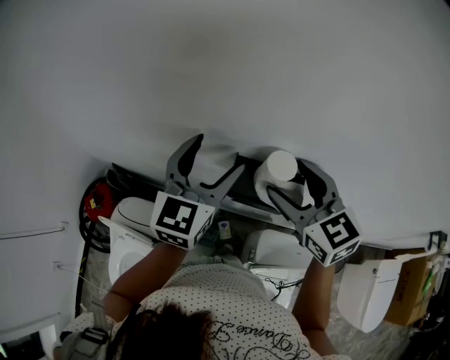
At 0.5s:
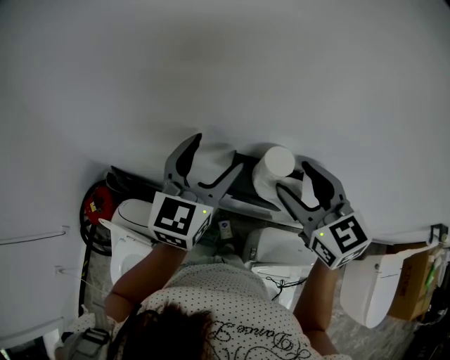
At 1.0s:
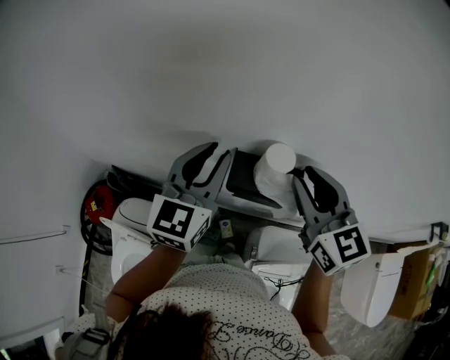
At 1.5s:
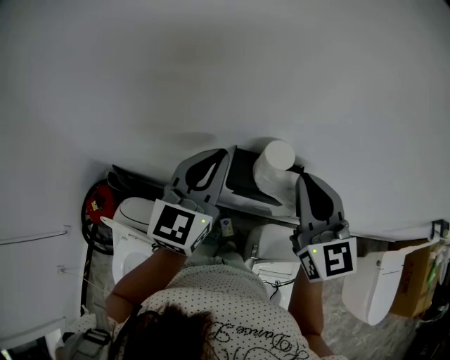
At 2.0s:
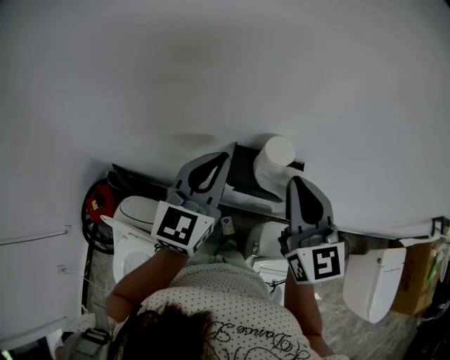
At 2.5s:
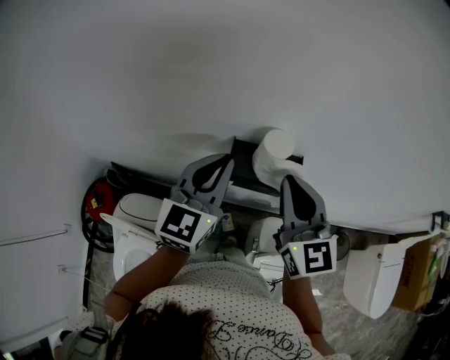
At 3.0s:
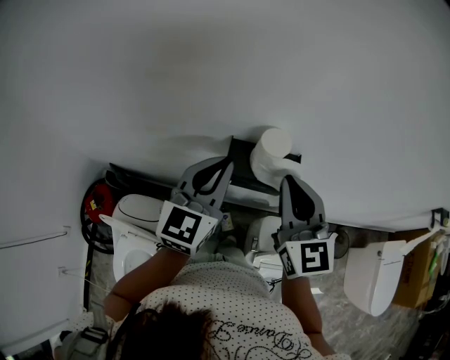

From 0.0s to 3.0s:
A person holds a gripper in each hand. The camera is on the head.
From 0.0s to 1.5s: The left gripper closes up. The right gripper ends up about 5 cm from where it was, changes its angle by approximately 20 degrees, and closes up.
From 1.5s to 3.0s: The left gripper changes place by about 5 cm.

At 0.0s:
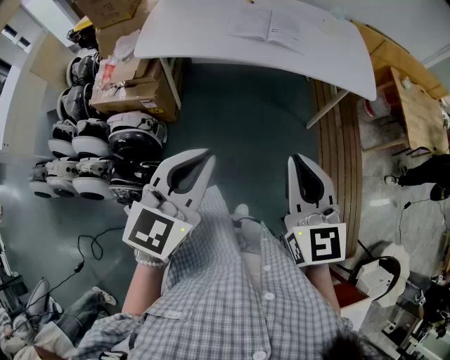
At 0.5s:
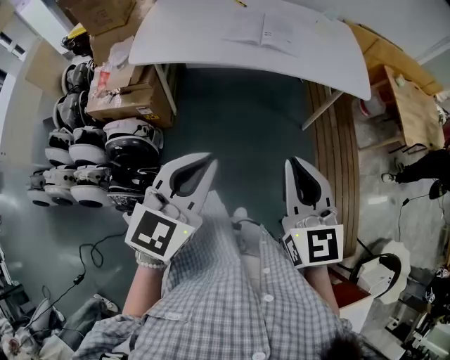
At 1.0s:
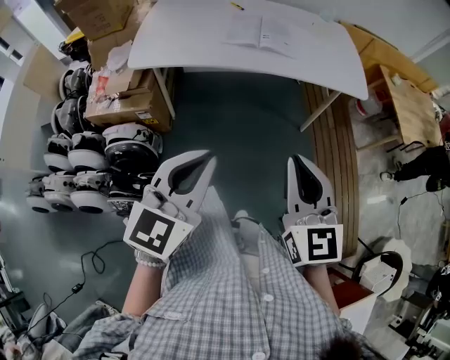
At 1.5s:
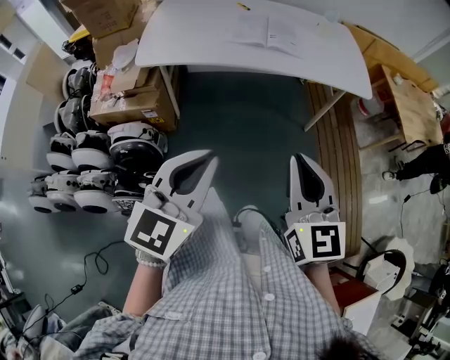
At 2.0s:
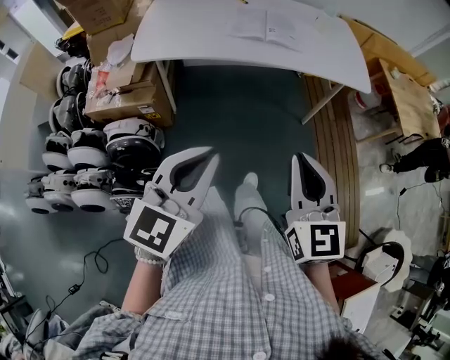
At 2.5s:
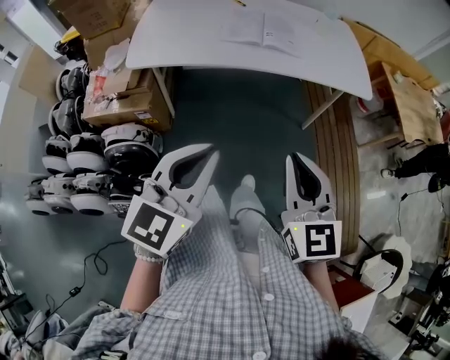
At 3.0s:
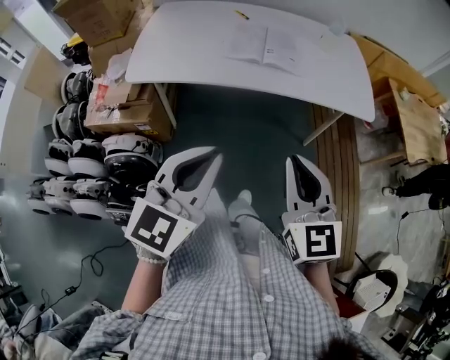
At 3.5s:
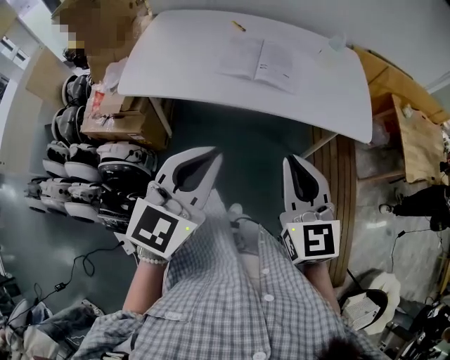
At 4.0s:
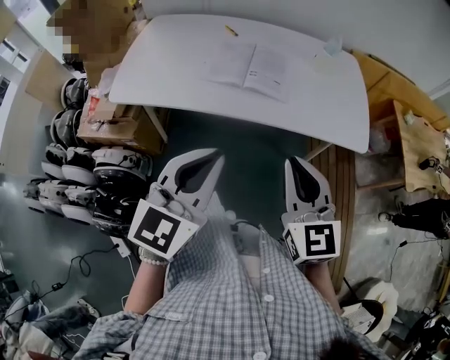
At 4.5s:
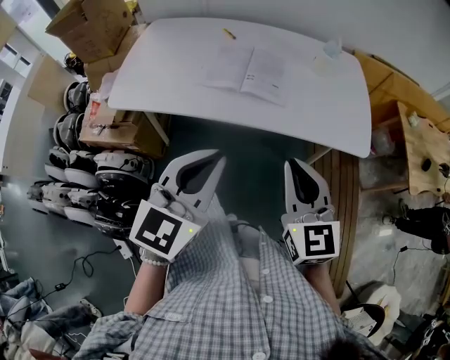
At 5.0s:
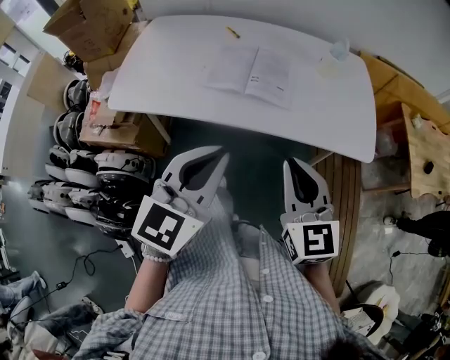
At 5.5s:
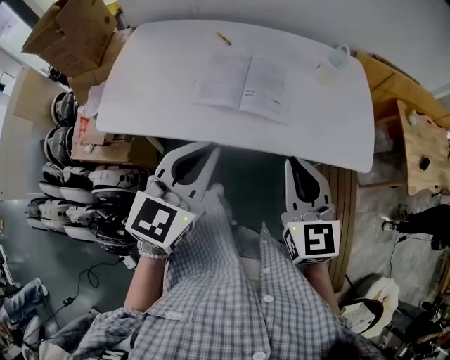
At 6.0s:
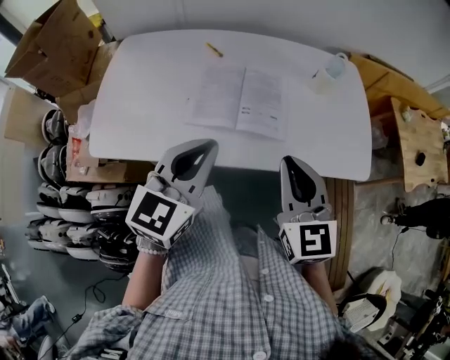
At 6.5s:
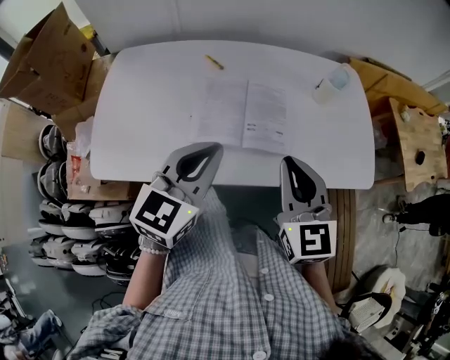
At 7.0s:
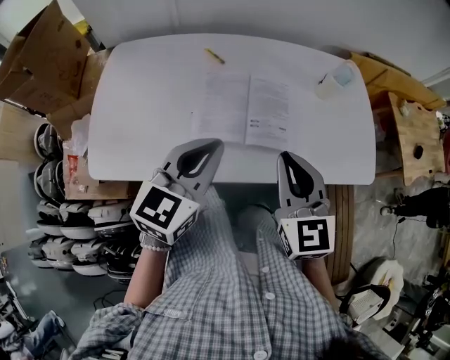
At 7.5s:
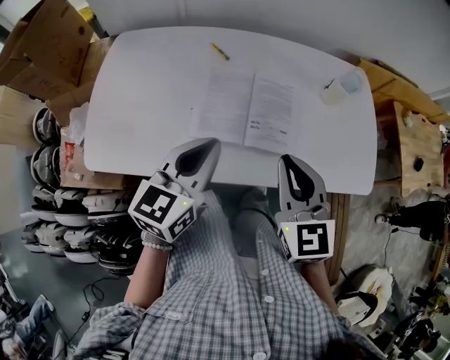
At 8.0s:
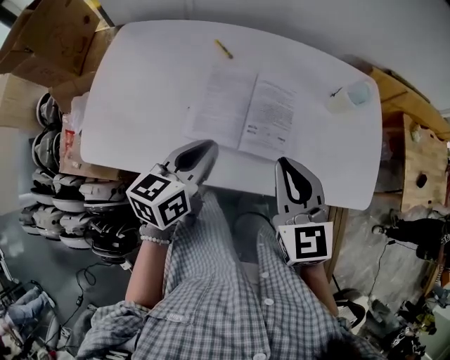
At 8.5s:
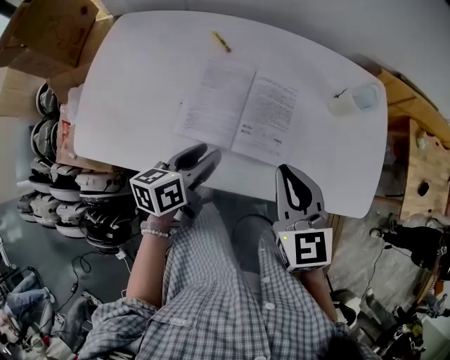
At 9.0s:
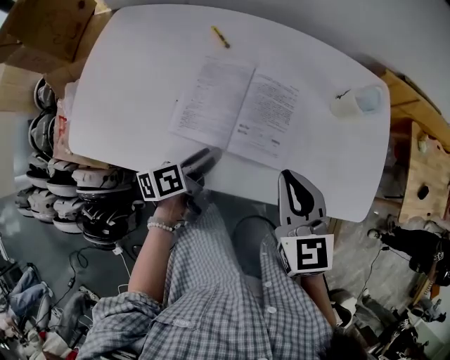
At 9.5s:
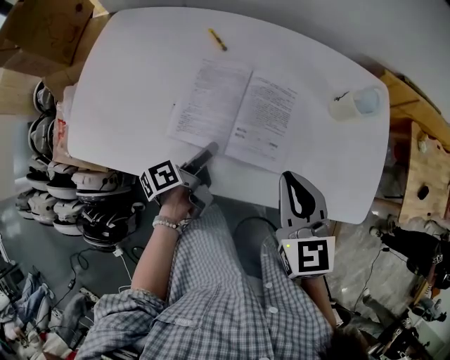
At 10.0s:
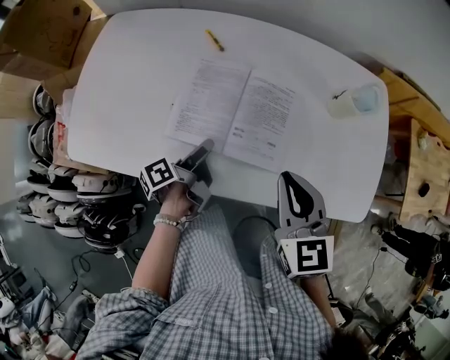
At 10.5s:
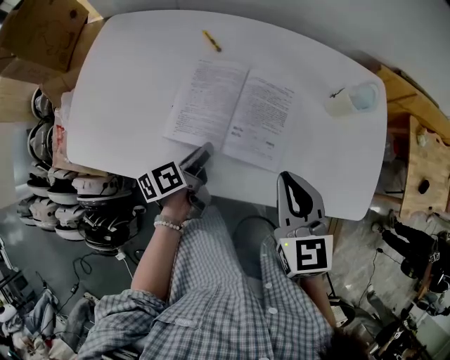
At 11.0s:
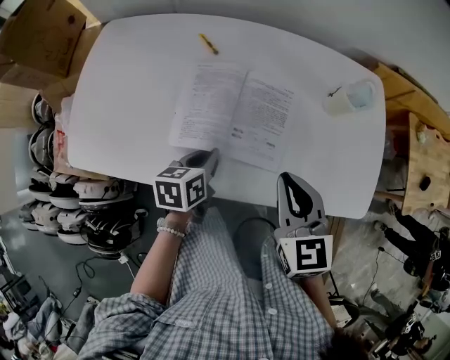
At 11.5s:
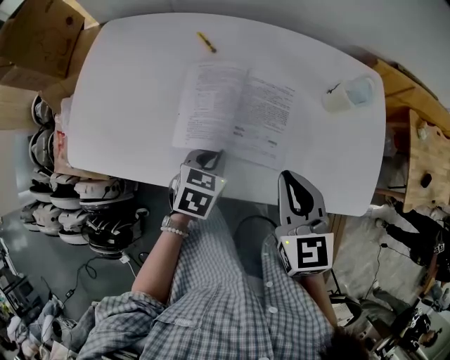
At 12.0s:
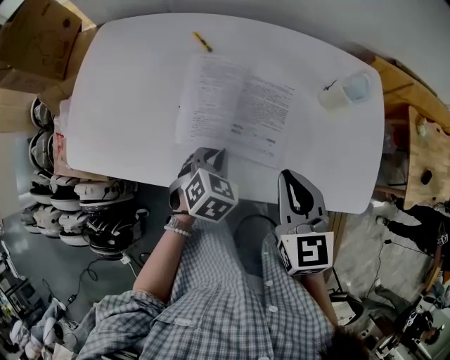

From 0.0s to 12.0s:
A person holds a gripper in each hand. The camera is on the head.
From 0.0s to 2.0s: The grippers make only small movements.
From 2.0s to 4.0s: Both grippers move forward and to the right, roughly 25 cm.
From 4.0s to 6.0s: Both grippers travel together forward, roughly 20 cm.
From 6.0s to 8.0s: The right gripper shifts approximately 10 cm forward. Meanwhile the left gripper moves downward and forward, approximately 15 cm, and swivels approximately 30 degrees.
From 8.0s to 10.0s: The left gripper moves downward, some 15 cm, twists about 60 degrees counterclockwise, seen from behind, and opens; the right gripper goes some 5 cm to the right.
From 10.0s to 12.0s: The left gripper shifts approximately 5 cm to the right, twists about 100 degrees clockwise, seen from behind, and closes.

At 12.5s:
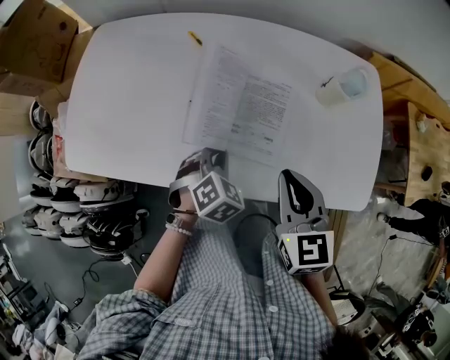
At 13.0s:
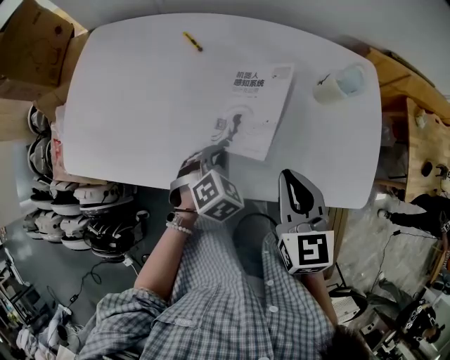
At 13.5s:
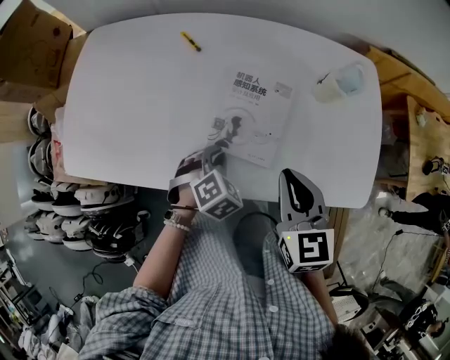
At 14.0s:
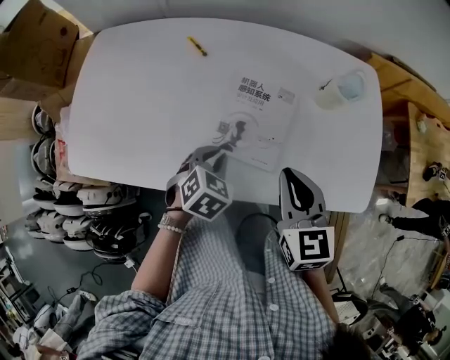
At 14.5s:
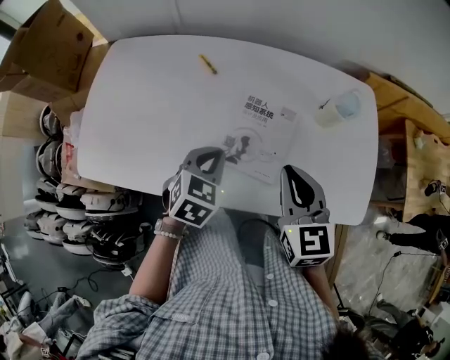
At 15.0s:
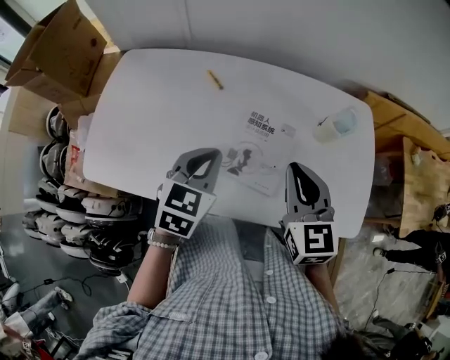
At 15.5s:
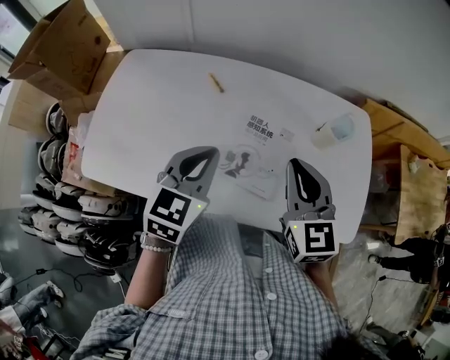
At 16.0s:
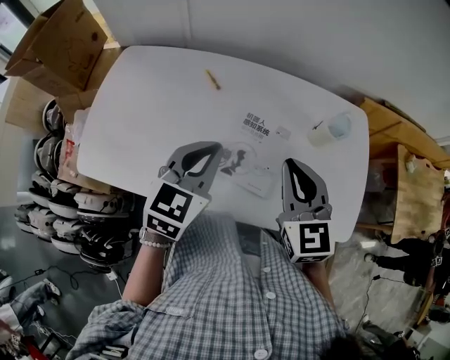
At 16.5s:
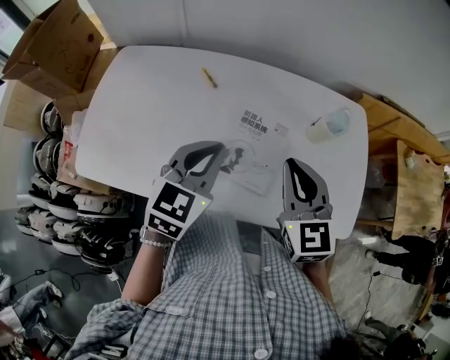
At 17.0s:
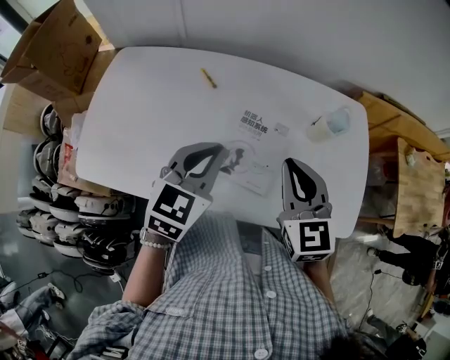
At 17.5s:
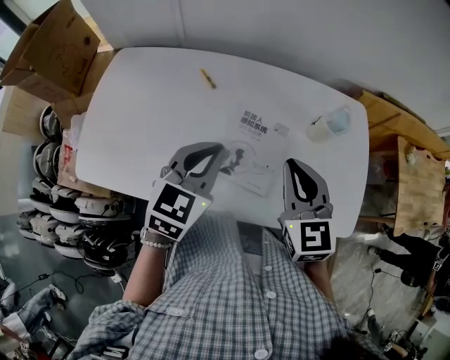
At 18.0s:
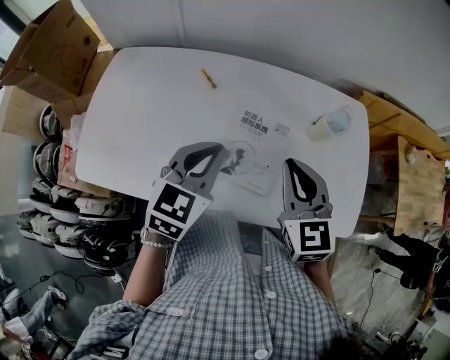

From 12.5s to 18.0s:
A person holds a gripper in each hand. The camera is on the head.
From 12.5s to 14.5s: The left gripper travels upward by roughly 10 cm, and swivels approximately 20 degrees.
From 14.5s to 16.0s: The right gripper goes some 5 cm upward; the left gripper travels upward by about 10 cm, and changes its angle by some 20 degrees.
From 16.0s to 18.0s: Both grippers stay about where they are.

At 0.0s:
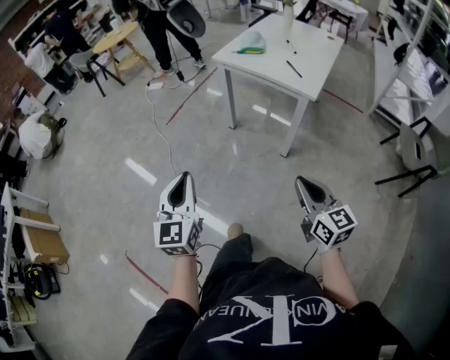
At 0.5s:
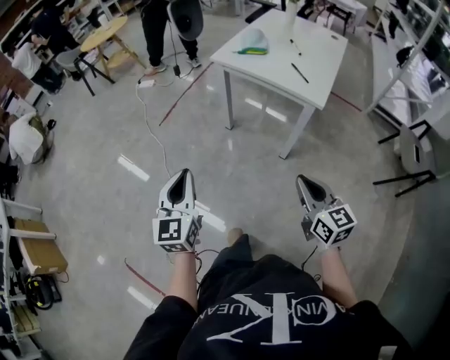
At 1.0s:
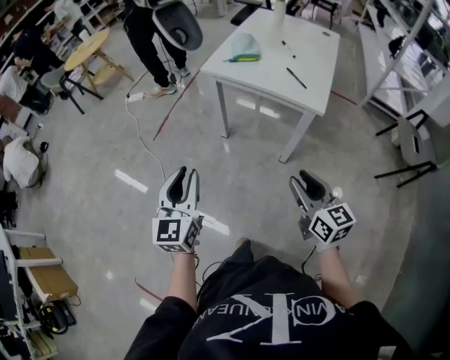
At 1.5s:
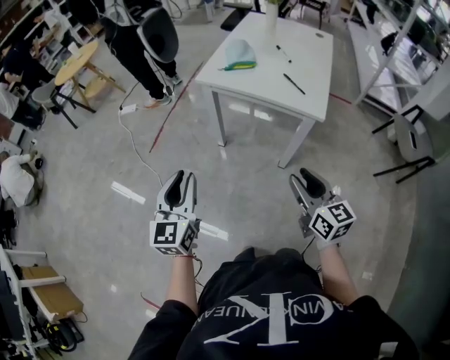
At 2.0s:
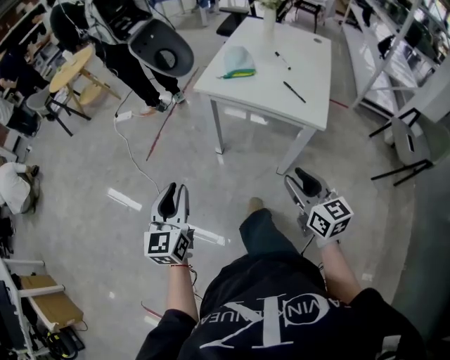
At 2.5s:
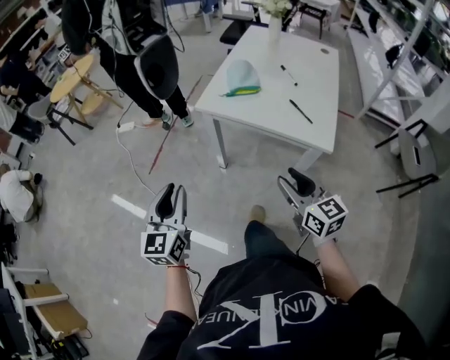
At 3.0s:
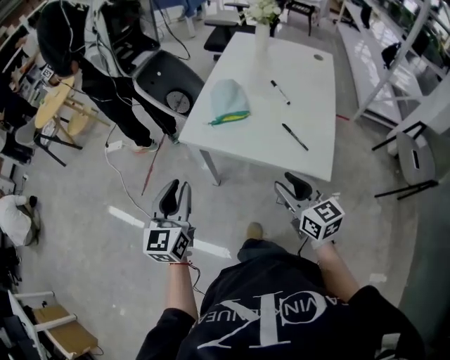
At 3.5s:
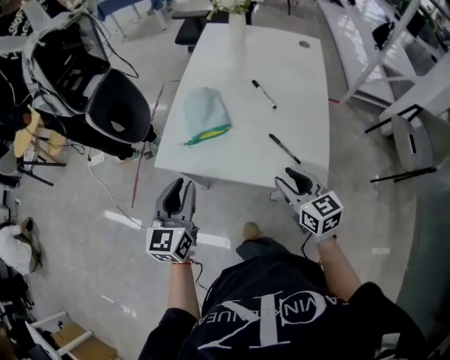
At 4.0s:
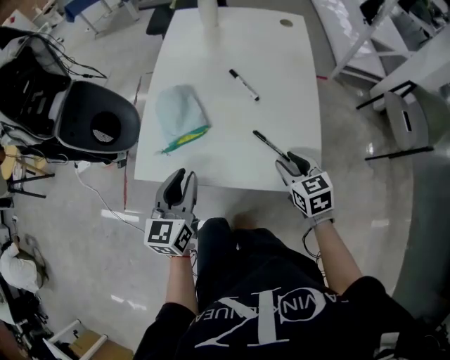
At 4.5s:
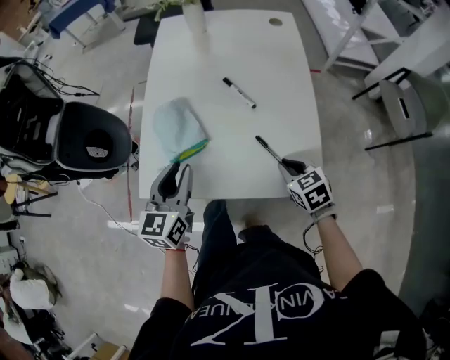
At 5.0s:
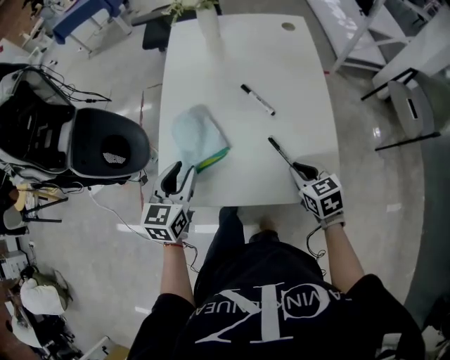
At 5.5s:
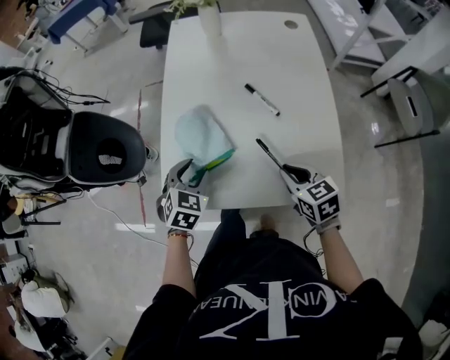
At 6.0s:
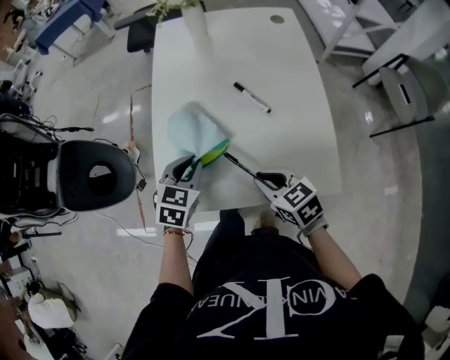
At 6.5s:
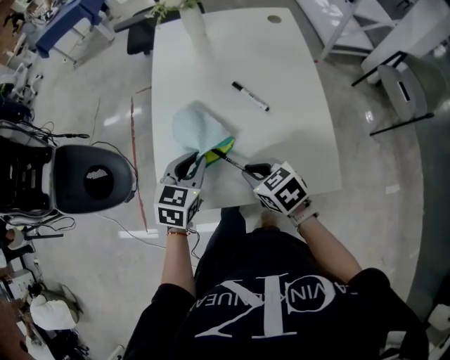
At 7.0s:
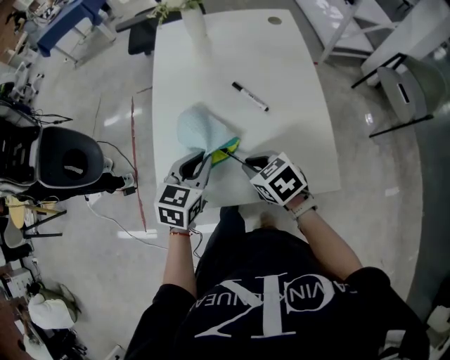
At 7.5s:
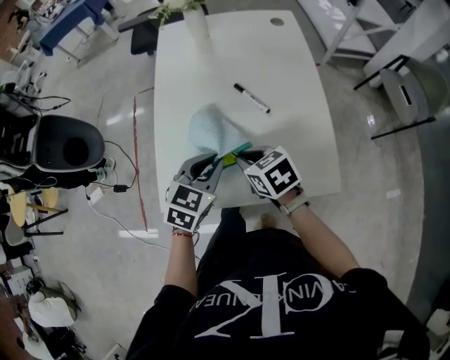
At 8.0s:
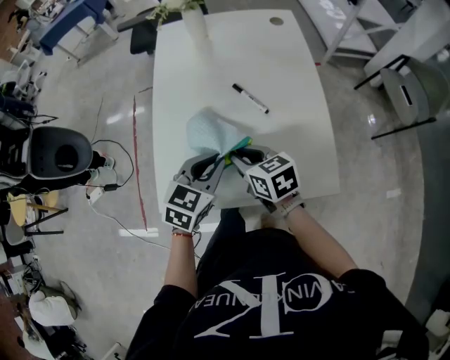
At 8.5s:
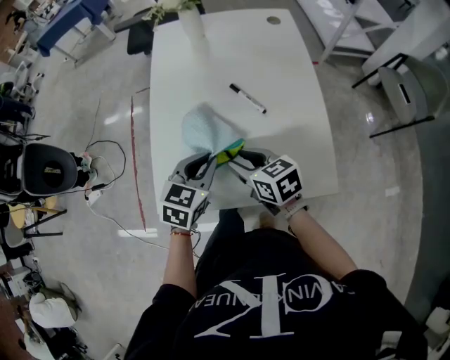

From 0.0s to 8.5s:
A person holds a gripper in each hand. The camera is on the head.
From 0.0s to 2.0s: The two grippers go about 25 cm forward. The right gripper opens up.
From 2.0s to 4.0s: Both grippers are carried forward and to the right, roughly 40 cm. The left gripper rotates some 30 degrees. Meanwhile the right gripper changes its angle by approximately 30 degrees.
From 4.0s to 6.5s: The left gripper shifts about 15 cm forward, changes its angle by some 30 degrees, and opens, then closes once more; the right gripper heads to the left, covering about 15 cm, and closes.
From 6.5s to 8.5s: The right gripper opens its fingers.
